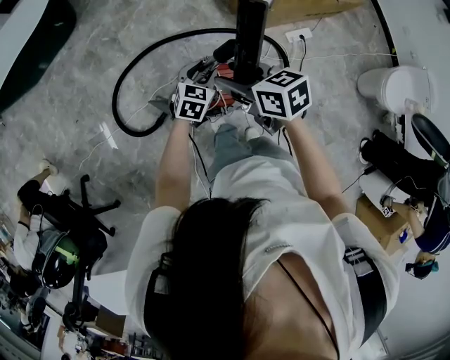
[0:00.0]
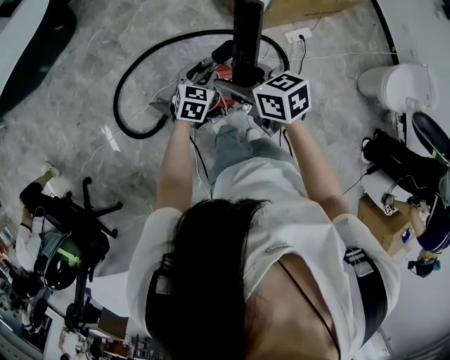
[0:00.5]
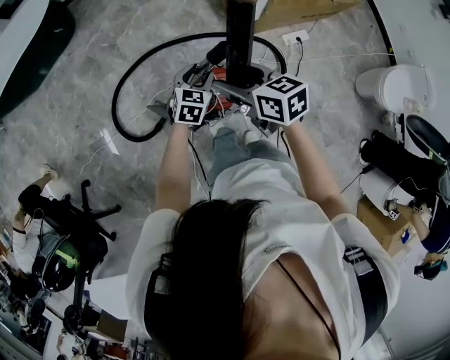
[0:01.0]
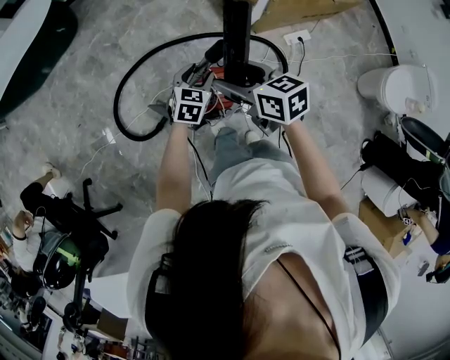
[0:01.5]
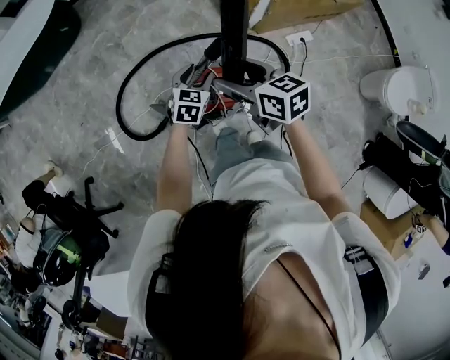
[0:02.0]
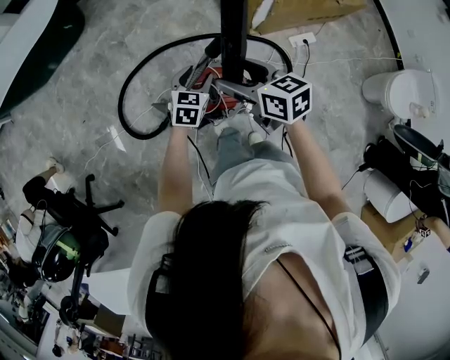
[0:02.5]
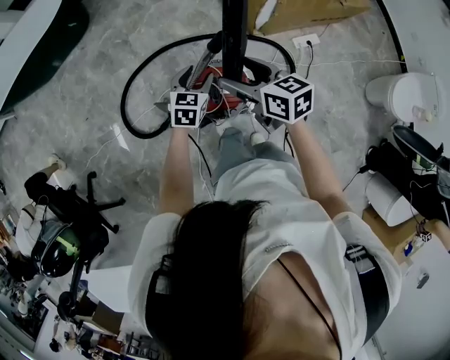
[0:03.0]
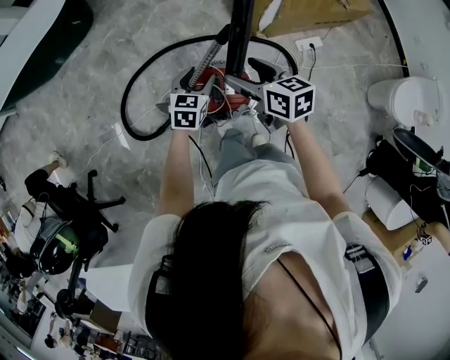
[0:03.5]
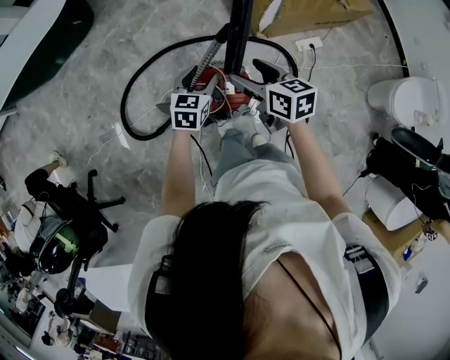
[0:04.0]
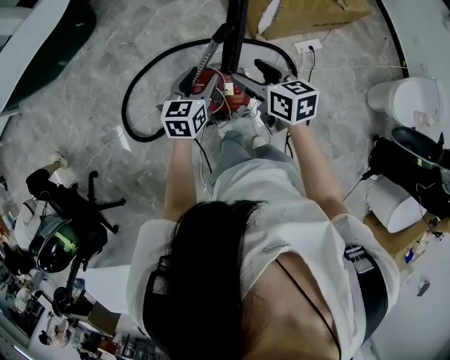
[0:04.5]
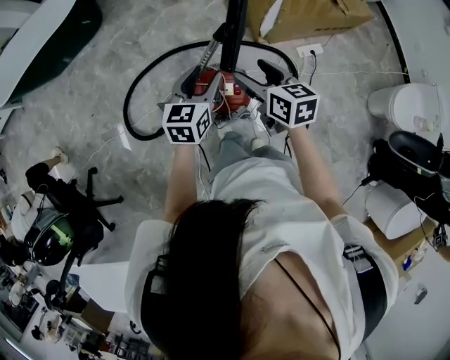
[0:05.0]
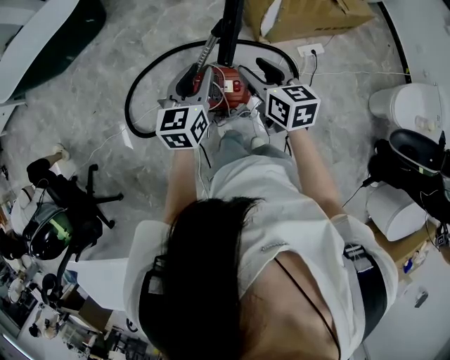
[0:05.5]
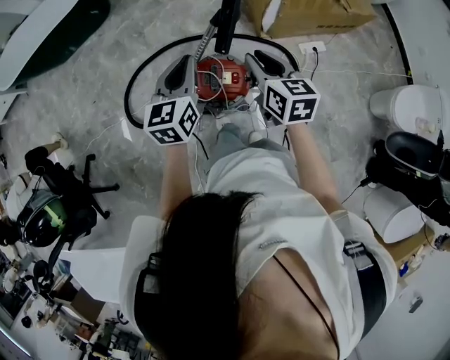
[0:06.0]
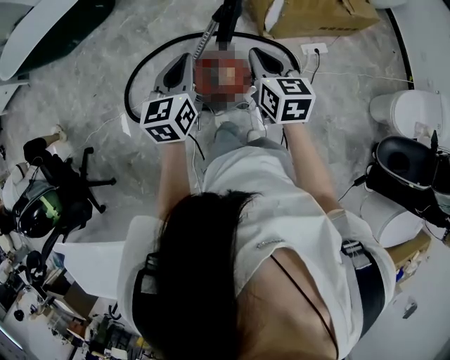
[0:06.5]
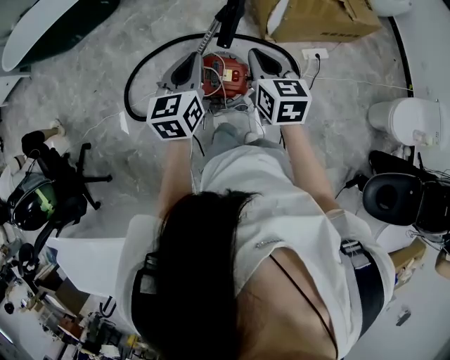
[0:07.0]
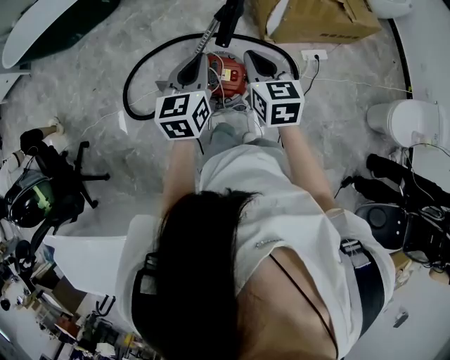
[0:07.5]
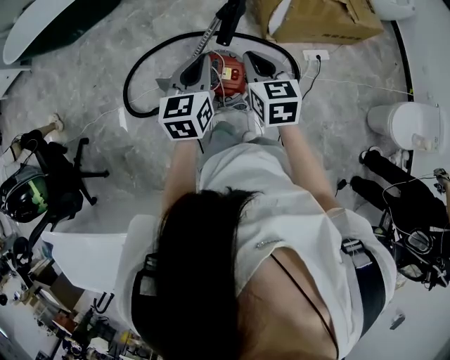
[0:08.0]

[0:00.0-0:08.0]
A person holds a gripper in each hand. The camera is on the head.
0.0 to 4.0 s: The grippers stay close to where they were, moving slightly.
4.0 to 6.0 s: The right gripper heads upward and backward, covering roughly 10 cm, and closes up. Meanwhile the left gripper is displaced upward and backward by about 20 cm, rotates roughly 30 degrees, and closes up.
6.0 to 8.0 s: The left gripper changes place by roughly 5 cm.

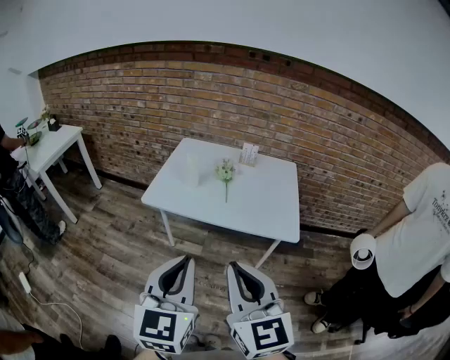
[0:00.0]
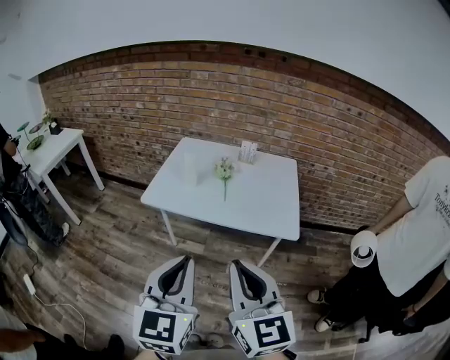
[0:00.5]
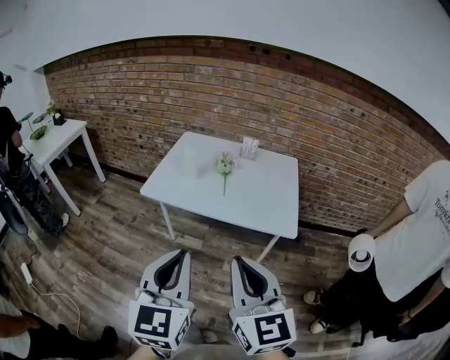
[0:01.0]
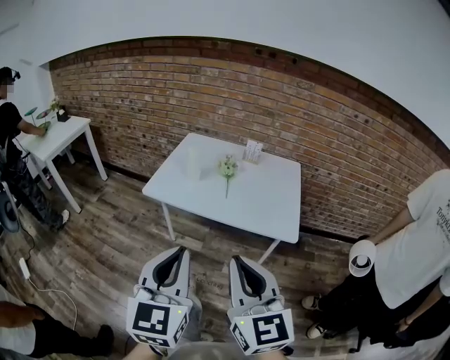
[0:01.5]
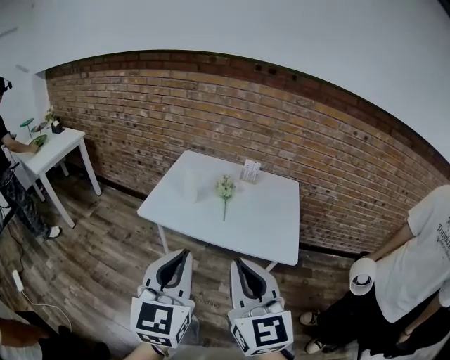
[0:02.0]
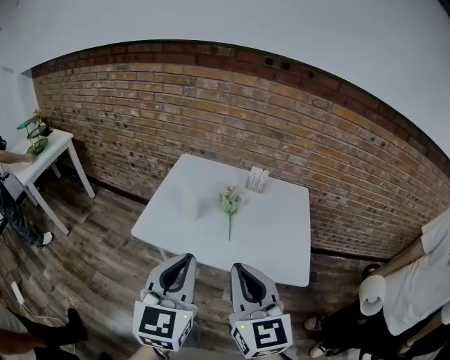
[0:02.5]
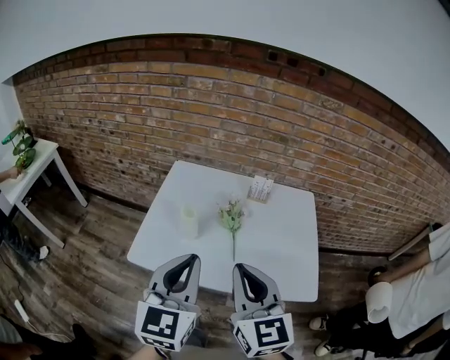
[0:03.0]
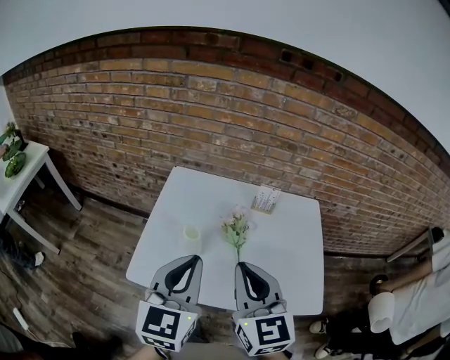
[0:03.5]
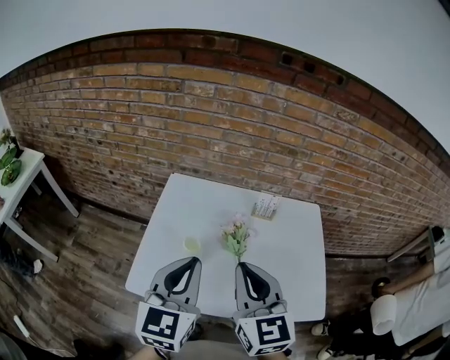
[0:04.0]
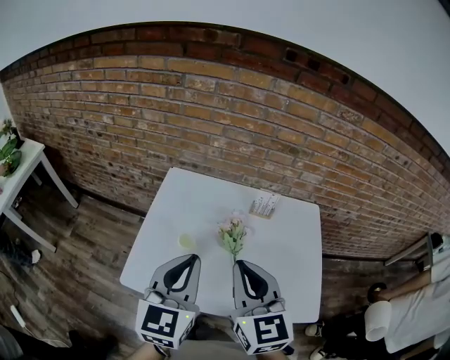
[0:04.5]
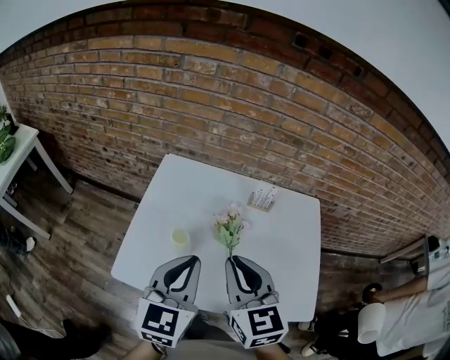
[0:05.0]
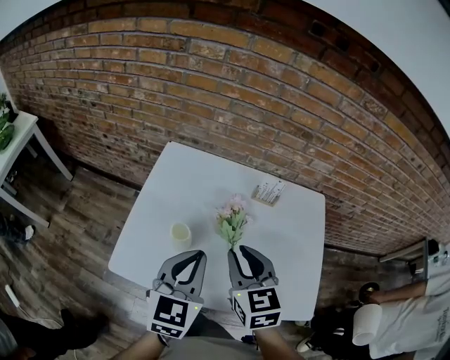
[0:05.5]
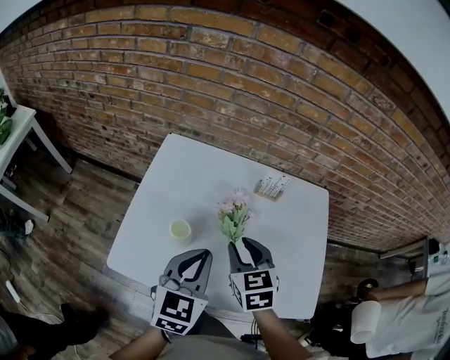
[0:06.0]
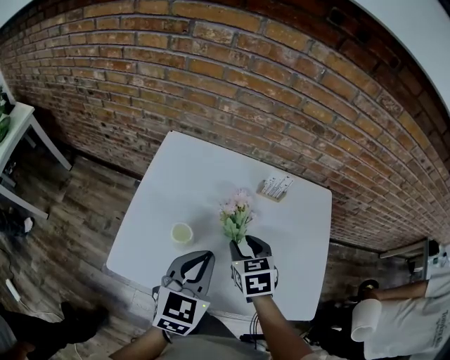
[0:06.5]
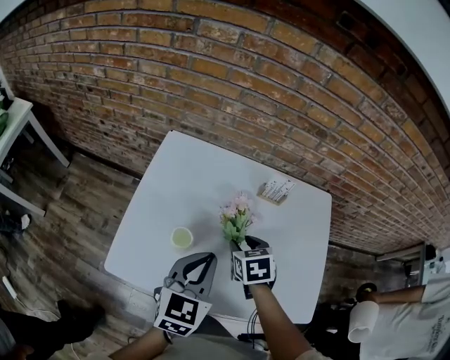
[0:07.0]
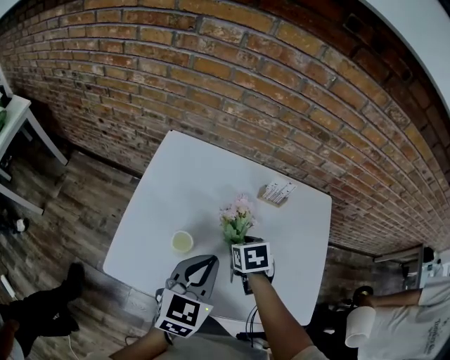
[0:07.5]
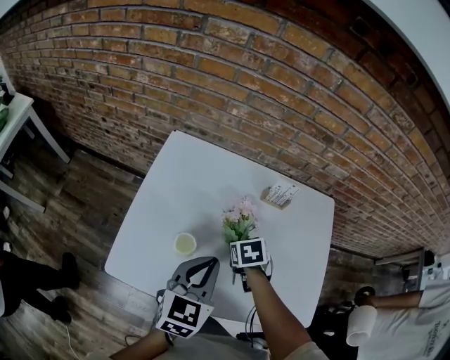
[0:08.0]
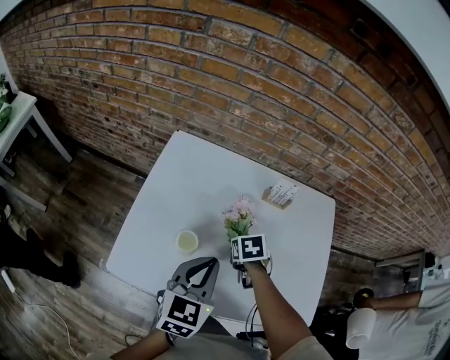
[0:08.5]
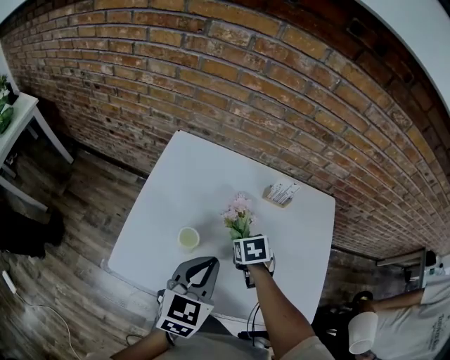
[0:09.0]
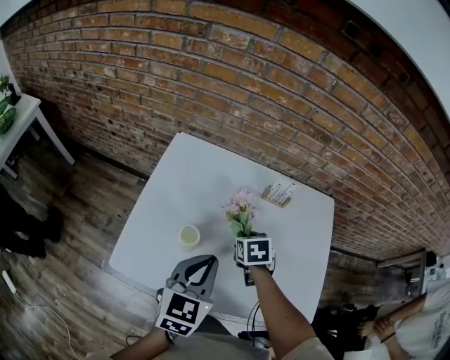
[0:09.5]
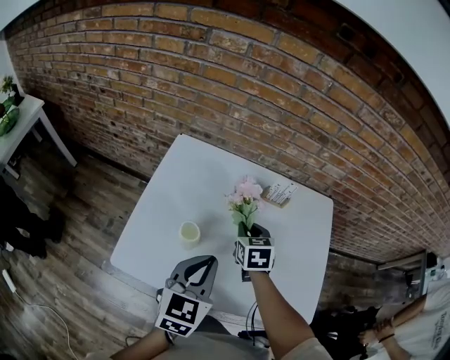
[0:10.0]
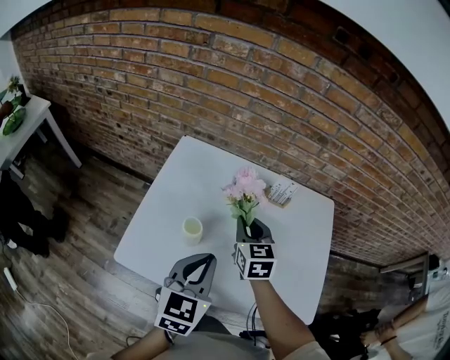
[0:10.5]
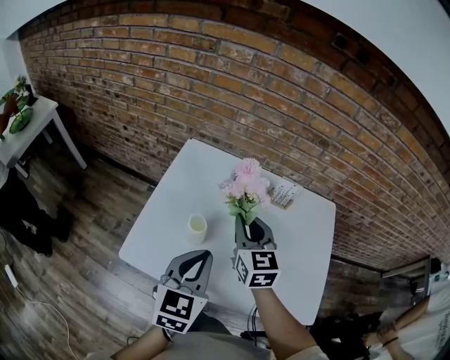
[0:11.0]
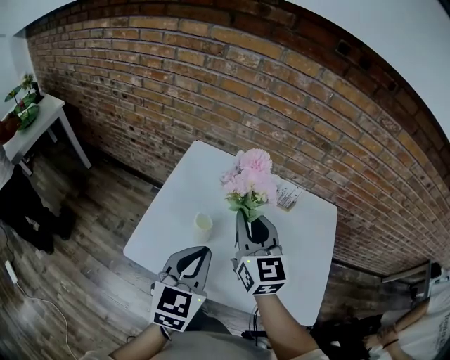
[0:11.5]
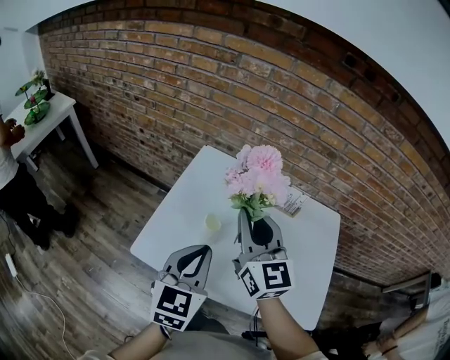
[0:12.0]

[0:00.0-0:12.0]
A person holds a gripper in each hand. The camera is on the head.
0.0 to 2.0 s: Both grippers move forward, approximately 5 cm.
2.0 to 4.0 s: Both grippers travel together forward, approximately 35 cm.
4.0 to 6.0 s: The left gripper travels downward and to the right by approximately 15 cm. Meanwhile the right gripper heads downward and forward, covering roughly 20 cm, rotates about 30 degrees, and opens.
6.0 to 8.0 s: The right gripper moves downward, roughly 15 cm, and tips its fingers downward by about 30 degrees.
8.0 to 10.0 s: The right gripper shifts approximately 10 cm upward, swivels roughly 30 degrees, and closes.
10.0 to 12.0 s: The left gripper is displaced to the left and upward by roughly 10 cm; the right gripper moves upward and to the left, about 25 cm, and angles its fingers upward, by approximately 50 degrees.

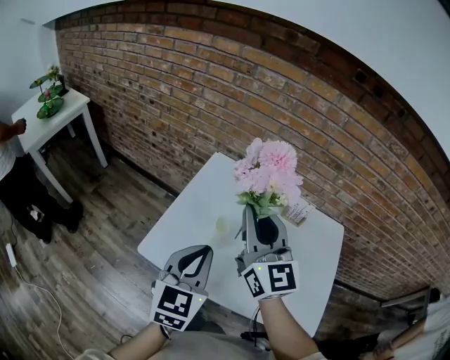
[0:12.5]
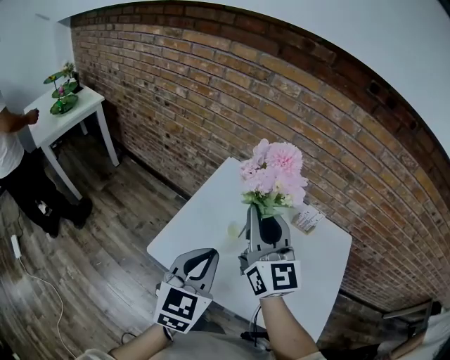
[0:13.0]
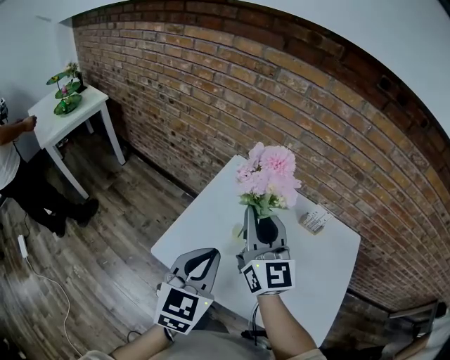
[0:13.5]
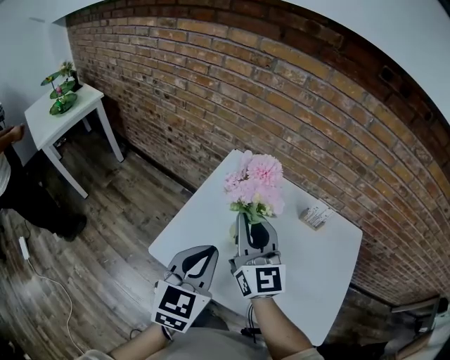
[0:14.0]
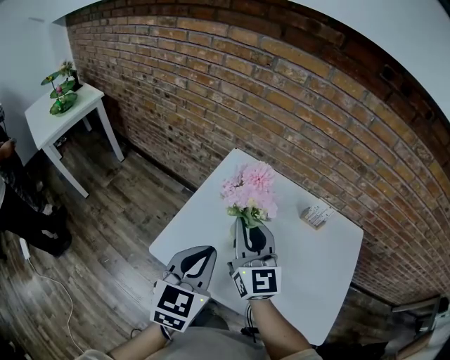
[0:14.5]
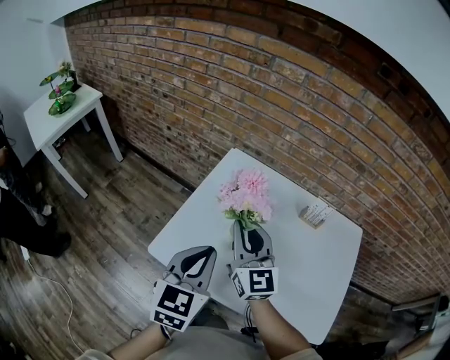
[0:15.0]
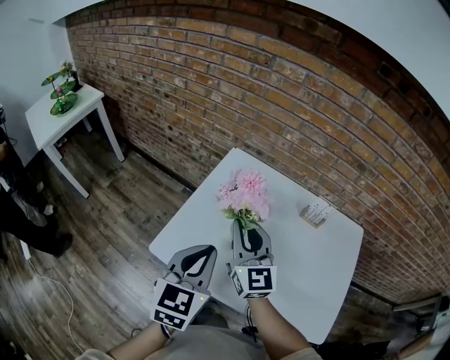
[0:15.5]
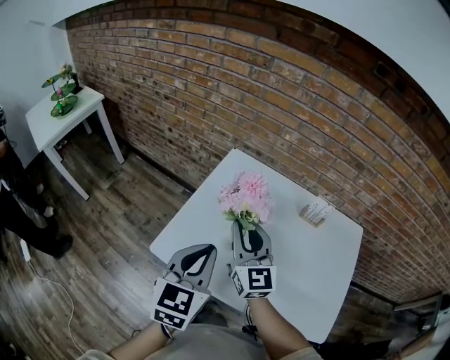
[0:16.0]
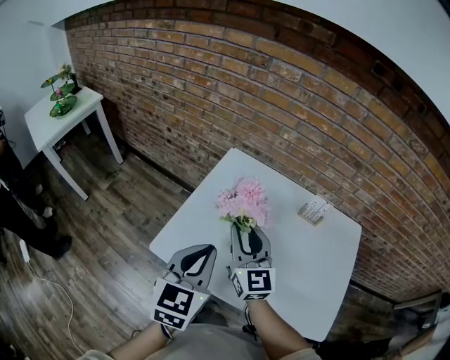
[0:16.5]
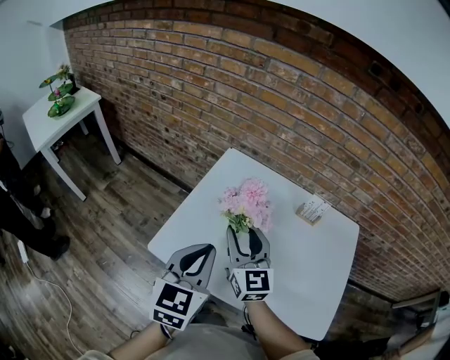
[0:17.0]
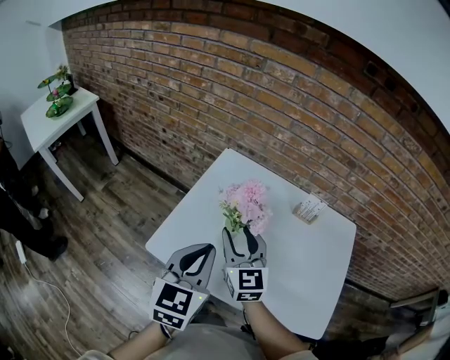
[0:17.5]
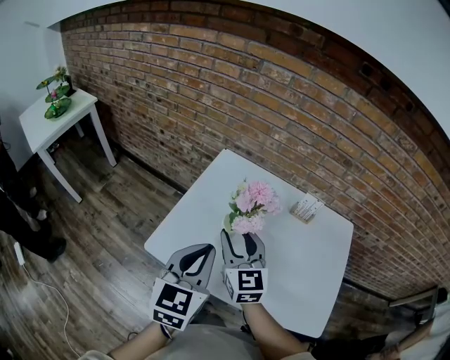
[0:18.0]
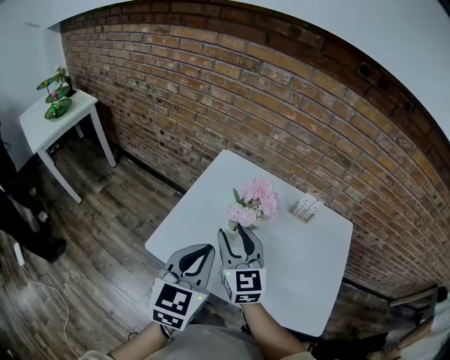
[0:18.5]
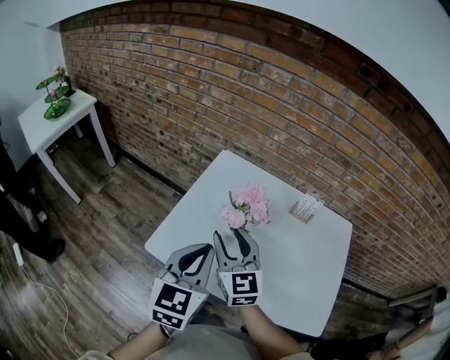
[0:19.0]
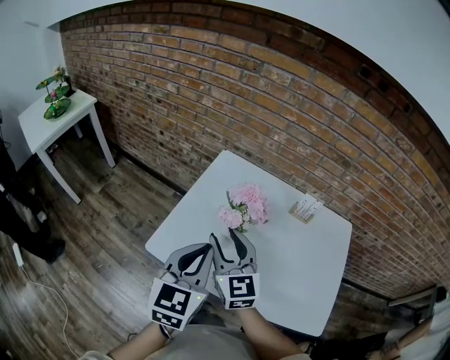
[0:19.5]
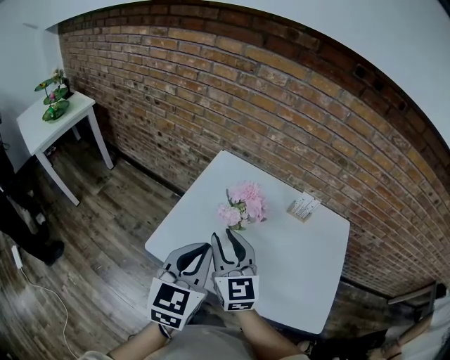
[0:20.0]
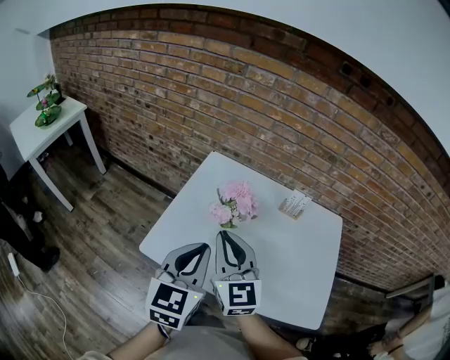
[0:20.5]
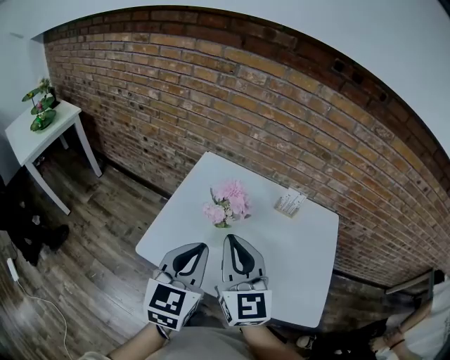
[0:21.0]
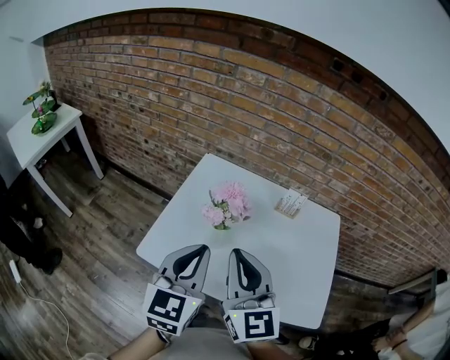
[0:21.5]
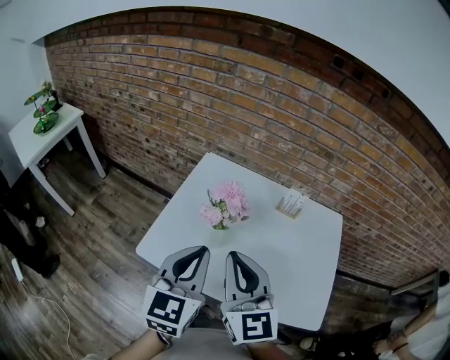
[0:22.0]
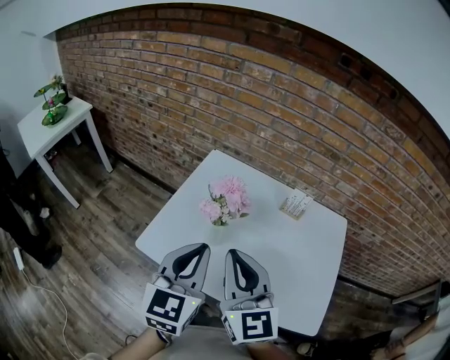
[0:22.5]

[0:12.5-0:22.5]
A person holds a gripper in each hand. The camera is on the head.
12.5 to 14.5 s: The right gripper is displaced downward by roughly 10 cm.
14.5 to 16.5 s: The grippers make only small movements.
16.5 to 18.5 s: The right gripper opens up.
18.5 to 20.5 s: The right gripper shifts by approximately 5 cm, and closes.
20.5 to 22.5 s: The right gripper travels to the right and backward by about 5 cm.
